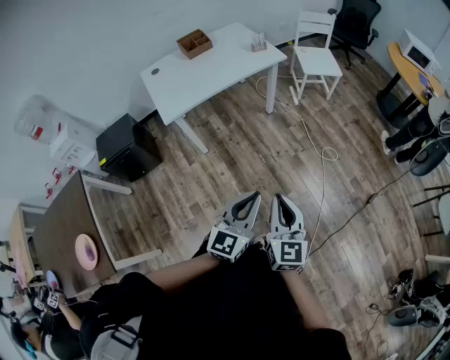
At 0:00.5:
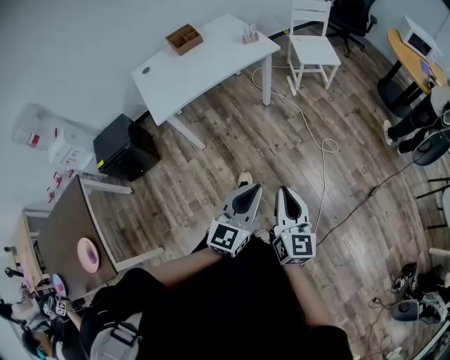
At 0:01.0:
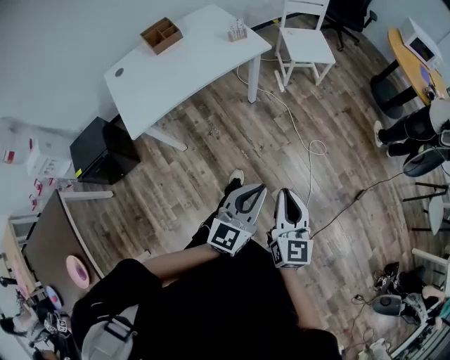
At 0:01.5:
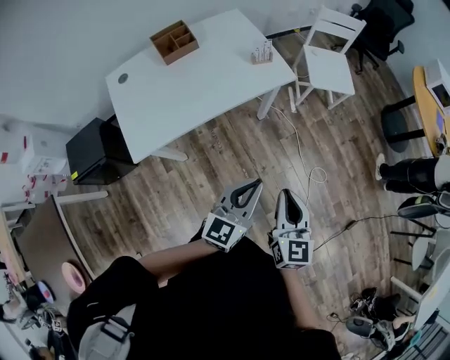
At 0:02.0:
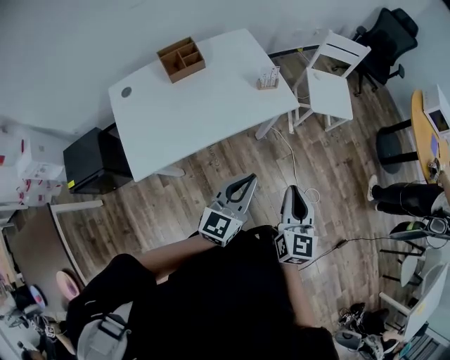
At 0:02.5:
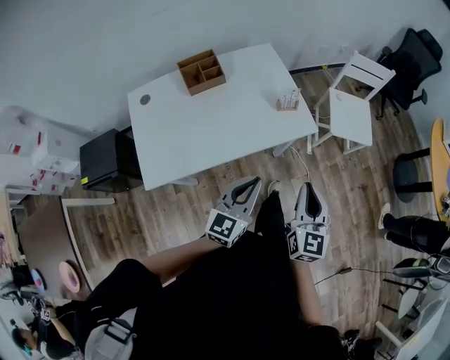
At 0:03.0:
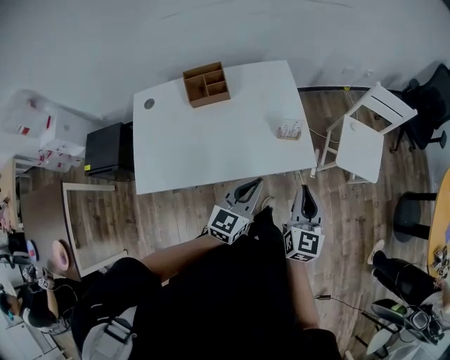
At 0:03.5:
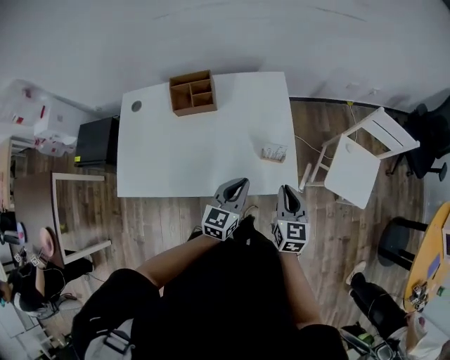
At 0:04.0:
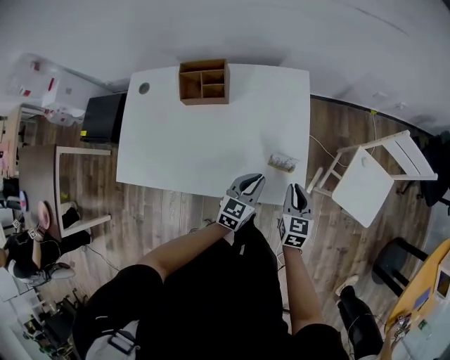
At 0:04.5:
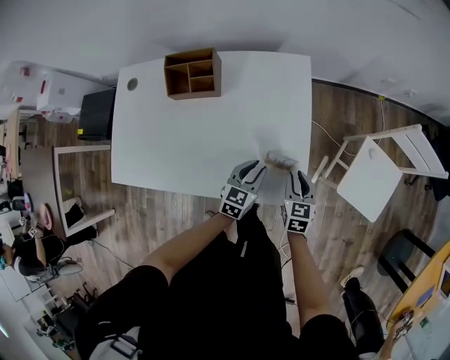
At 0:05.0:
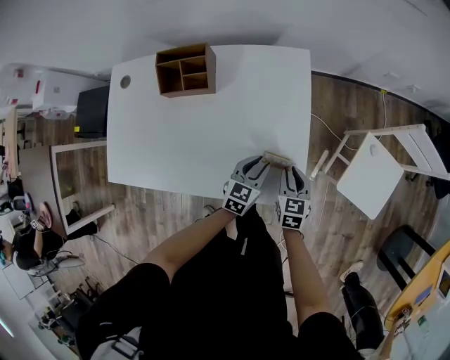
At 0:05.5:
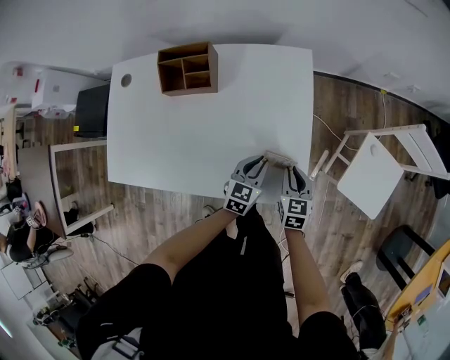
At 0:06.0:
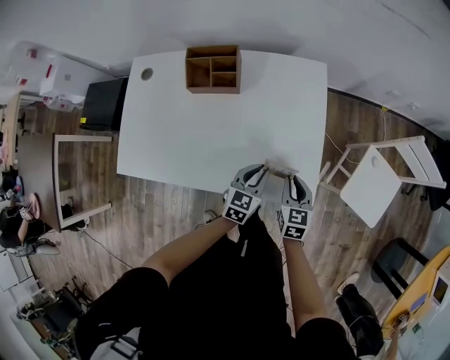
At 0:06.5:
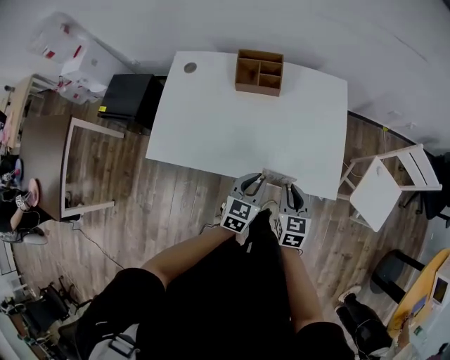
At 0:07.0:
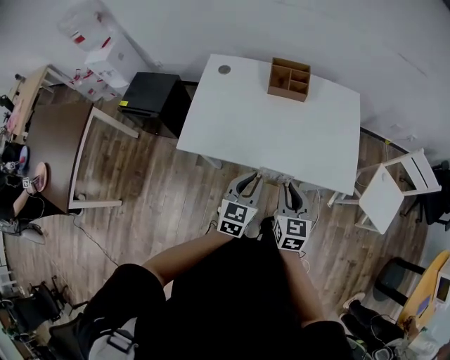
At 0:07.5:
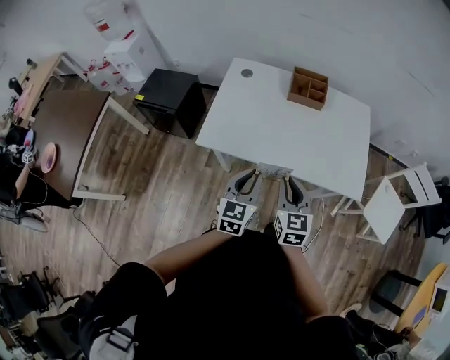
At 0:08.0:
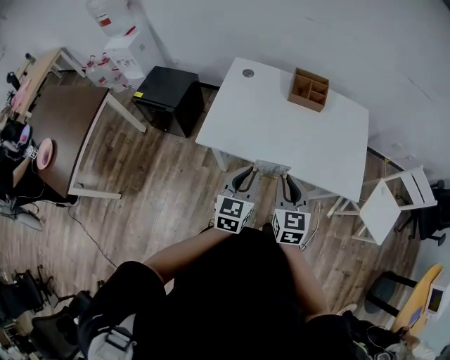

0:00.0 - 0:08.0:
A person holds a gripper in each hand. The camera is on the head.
0:00.0 - 0:02.0: The two grippers travel together, forward, about 50 cm.
0:02.0 - 0:04.0: The left gripper moves some 40 cm, and changes its angle by about 30 degrees. Meanwhile the right gripper ends up about 50 cm from where it was, and swivels about 40 degrees.
0:04.0 - 0:06.0: The right gripper is displaced to the left by approximately 5 cm.
0:06.0 - 0:08.0: Both grippers are carried to the left and backward, some 40 cm. The two grippers go some 20 cm upward. The right gripper swivels some 20 degrees. Meanwhile the left gripper turns by roughly 30 degrees.

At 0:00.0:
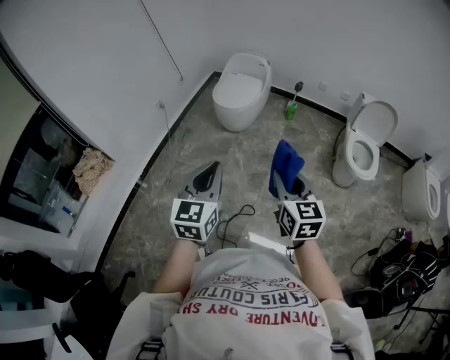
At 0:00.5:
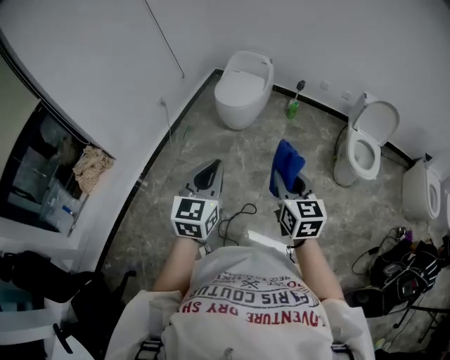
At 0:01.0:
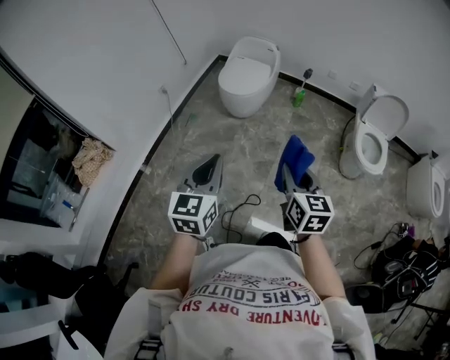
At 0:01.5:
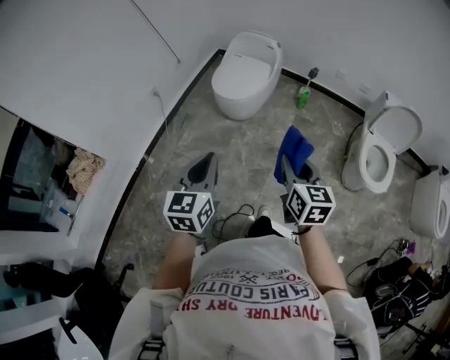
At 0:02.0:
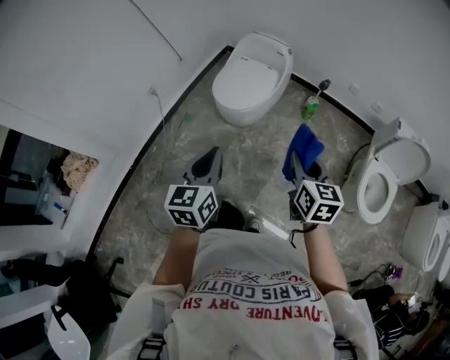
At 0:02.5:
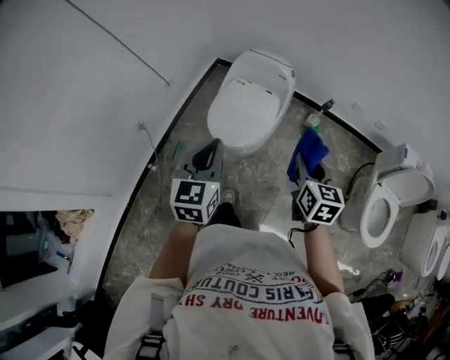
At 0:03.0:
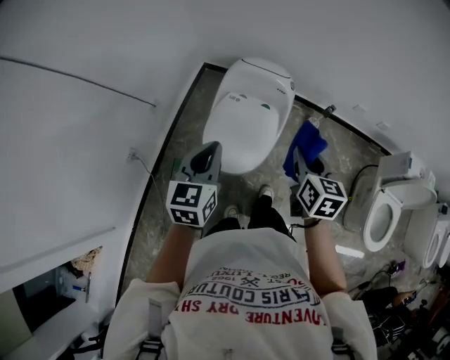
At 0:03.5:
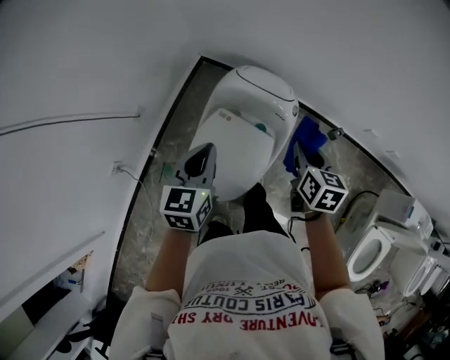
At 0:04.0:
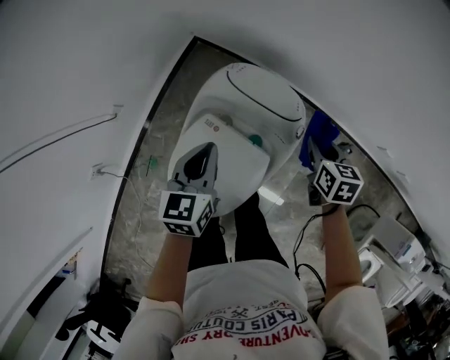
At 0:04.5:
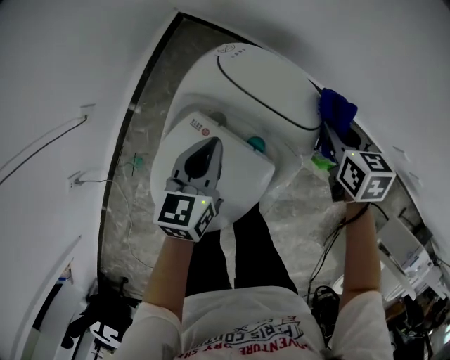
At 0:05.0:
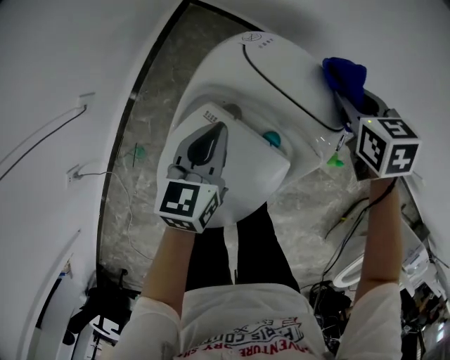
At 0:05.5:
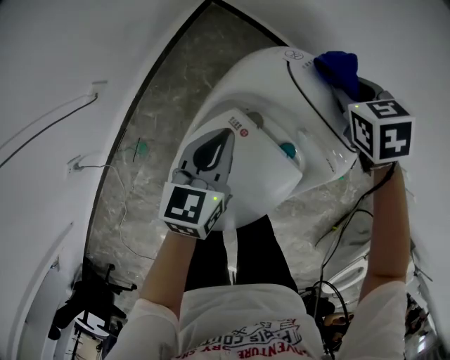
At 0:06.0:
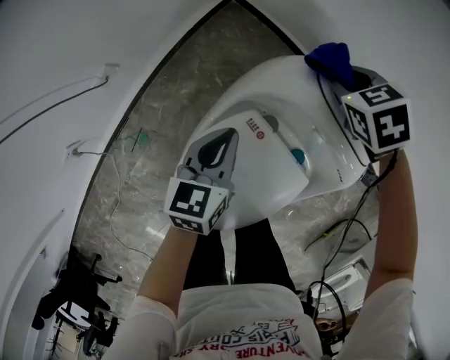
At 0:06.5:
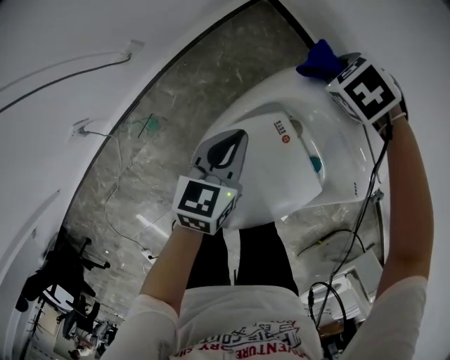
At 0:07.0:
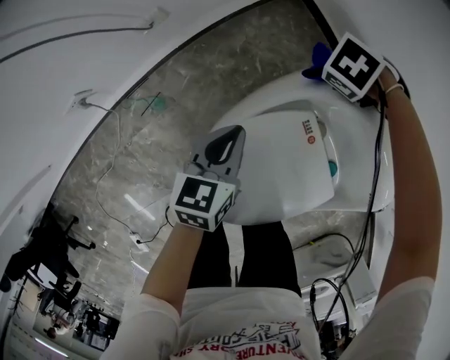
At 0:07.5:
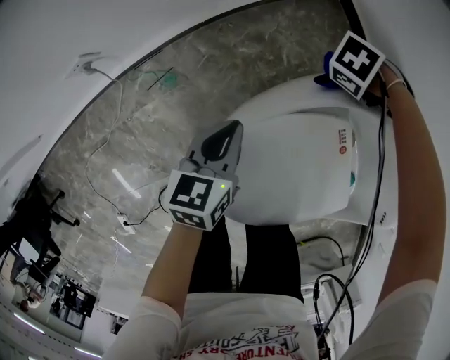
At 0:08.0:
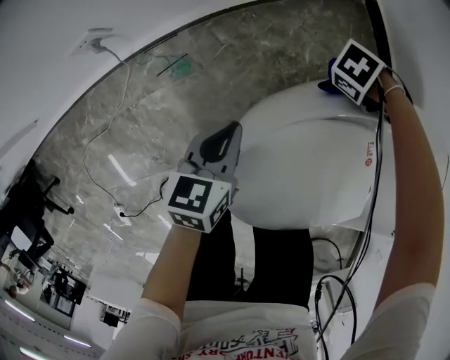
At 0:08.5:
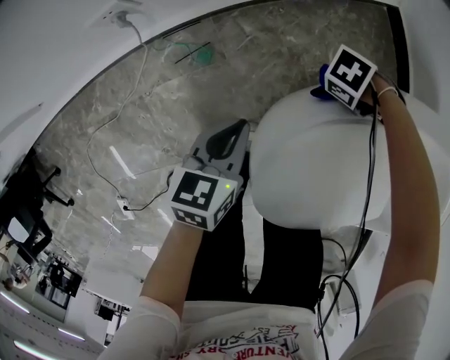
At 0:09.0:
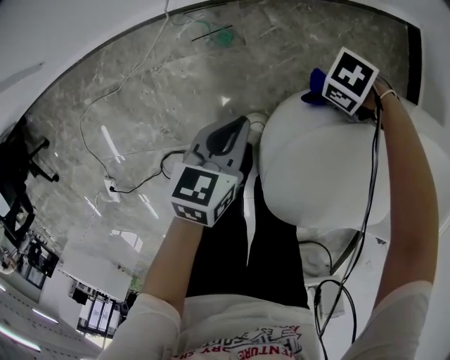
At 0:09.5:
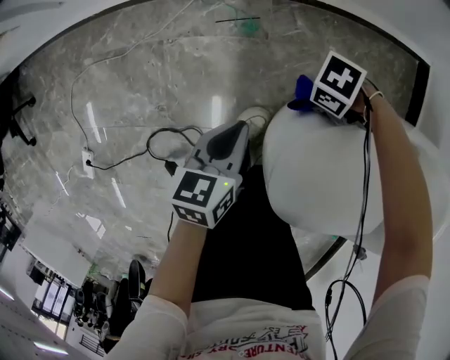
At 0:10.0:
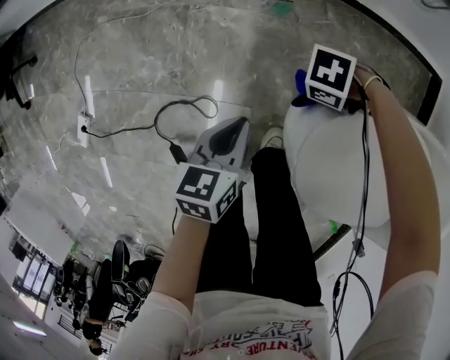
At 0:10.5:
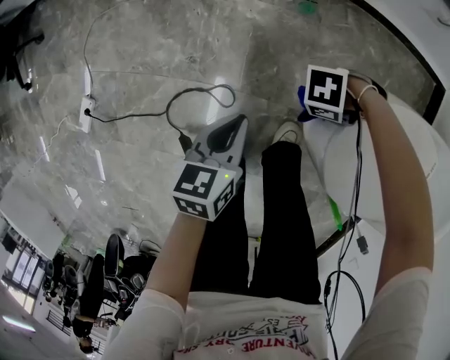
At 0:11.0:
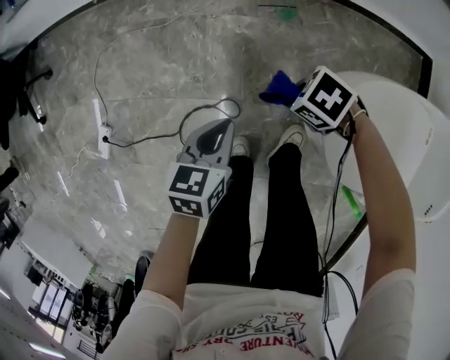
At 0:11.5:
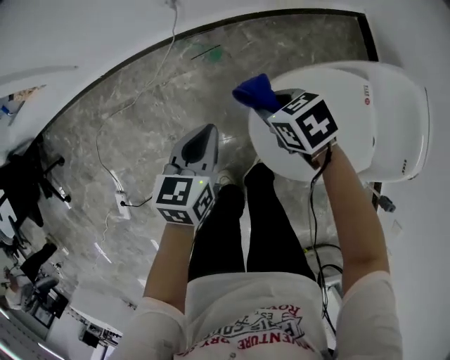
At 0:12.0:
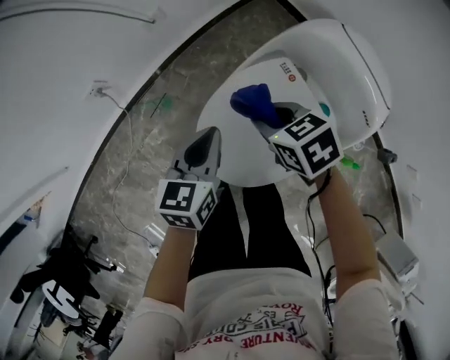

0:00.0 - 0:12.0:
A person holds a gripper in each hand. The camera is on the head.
0:00.0 - 0:02.0: The grippers both shift forward by some 40 cm.
0:02.0 - 0:04.0: Both grippers are carried forward, approximately 90 cm. The right gripper turns by some 30 degrees.
0:04.0 - 0:06.0: The right gripper heads to the left and forward, covering approximately 30 cm, and rolls counterclockwise, seen from behind, by roughly 50 degrees. The left gripper travels downward and to the left by approximately 20 cm.
0:06.0 - 0:08.0: The left gripper ends up approximately 30 cm from where it was, and swivels approximately 30 degrees; the right gripper shifts by some 35 cm, and swivels roughly 70 degrees.
0:08.0 - 0:10.0: The left gripper changes place by roughly 35 cm, and turns by some 30 degrees. Meanwhile the right gripper shifts by about 40 cm, and rotates around the line of its fingers by roughly 40 degrees, counterclockwise from behind.
0:10.0 - 0:12.0: The right gripper goes some 30 cm upward, and rotates approximately 110 degrees; the left gripper changes place by some 40 cm, and rotates some 50 degrees.

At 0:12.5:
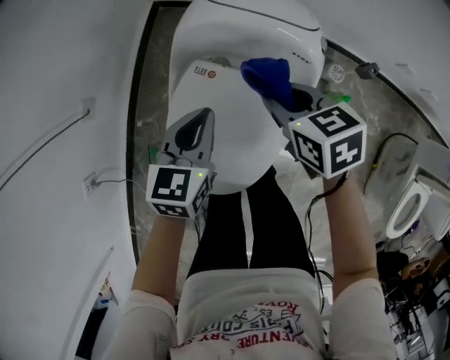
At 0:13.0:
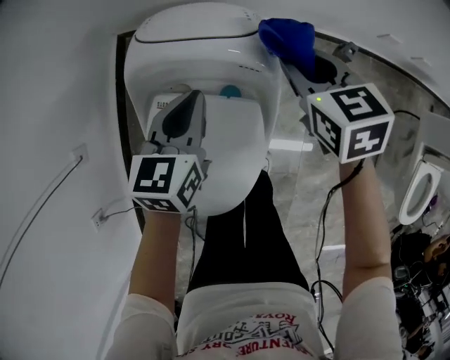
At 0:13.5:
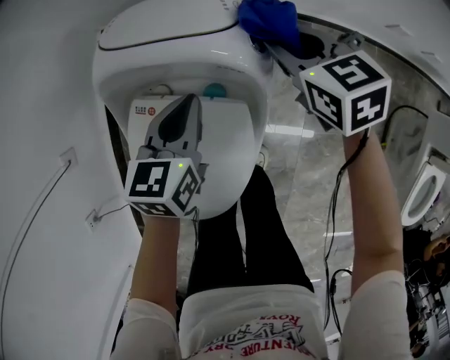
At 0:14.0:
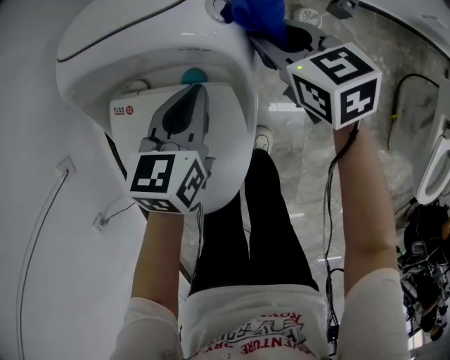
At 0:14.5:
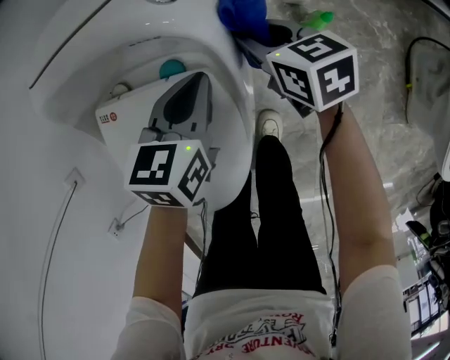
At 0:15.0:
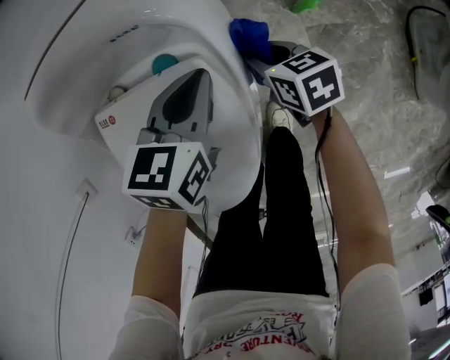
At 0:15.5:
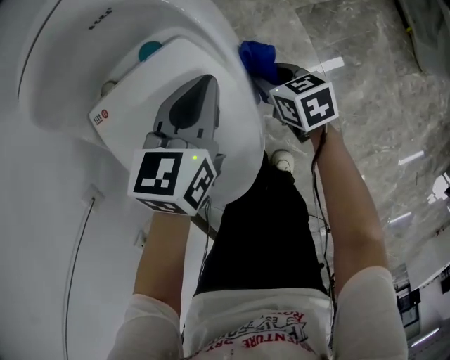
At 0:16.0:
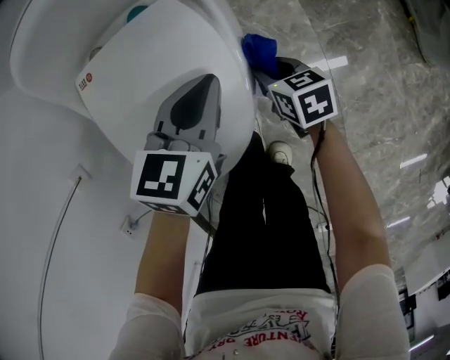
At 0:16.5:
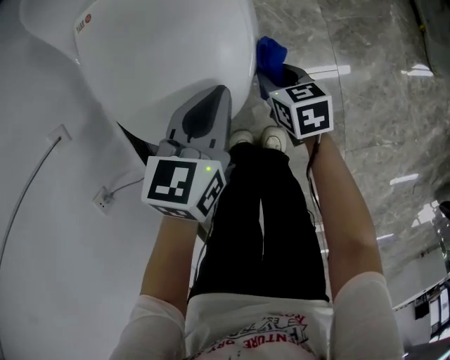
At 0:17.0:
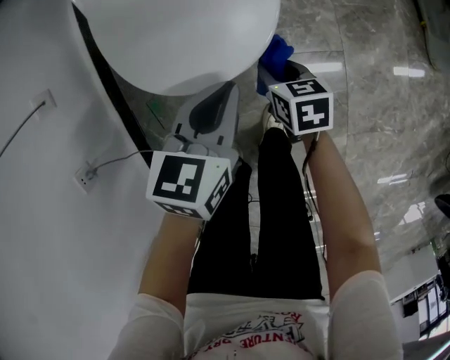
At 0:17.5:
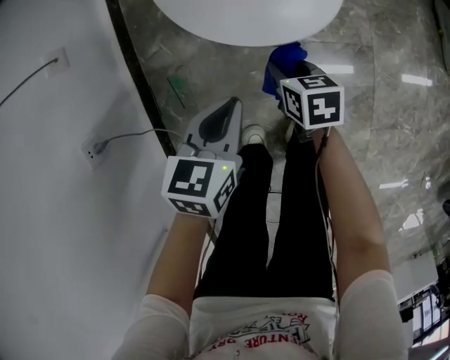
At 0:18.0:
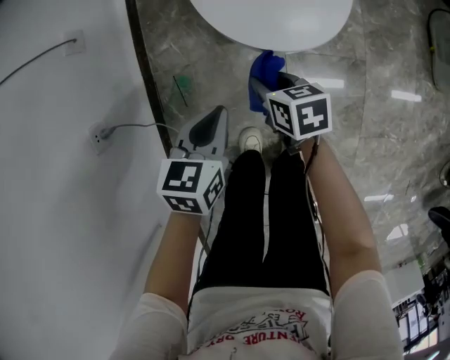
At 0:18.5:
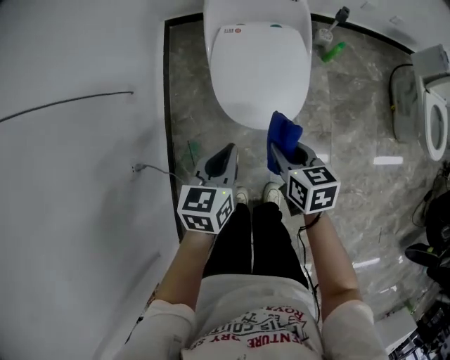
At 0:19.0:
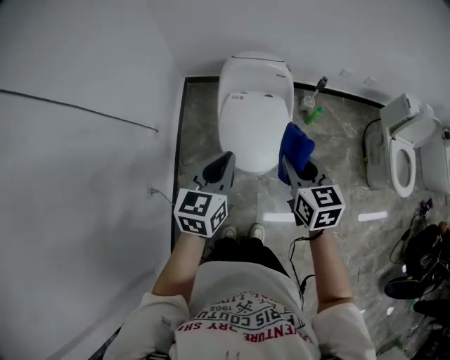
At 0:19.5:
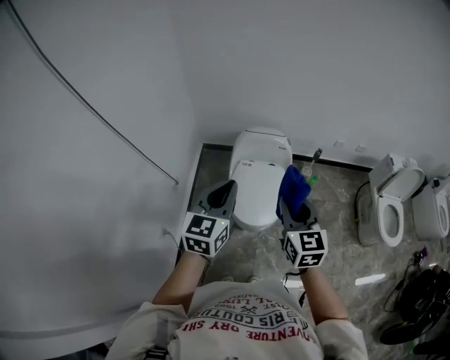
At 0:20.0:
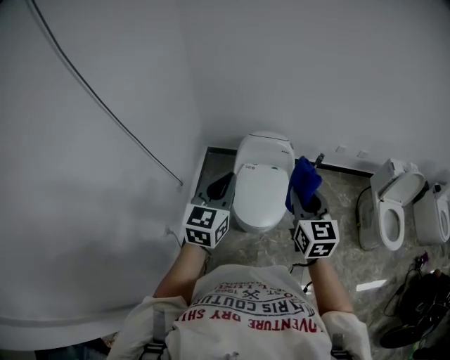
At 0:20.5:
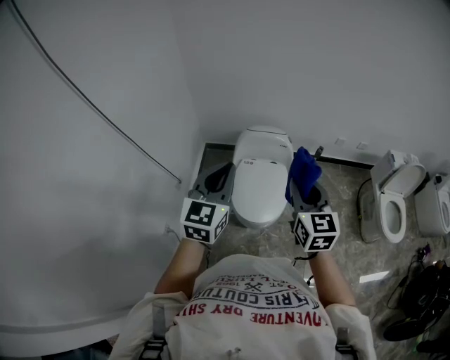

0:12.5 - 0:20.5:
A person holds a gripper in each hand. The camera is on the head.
0:12.5 - 0:14.5: Both grippers move to the right and downward, some 30 cm. The right gripper rotates approximately 20 degrees, while the left gripper changes its angle by about 20 degrees.
0:14.5 - 0:16.5: The grippers both shift backward by some 35 cm.
0:16.5 - 0:18.5: The right gripper travels upward and to the left by some 40 cm. The left gripper shifts approximately 35 cm to the left, upward and backward.
0:18.5 - 0:20.5: The grippers both shift upward by about 50 cm. The right gripper points its fingers approximately 30 degrees further upward. The left gripper turns by roughly 40 degrees.
